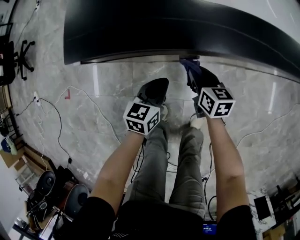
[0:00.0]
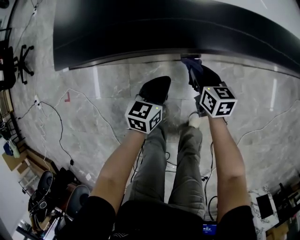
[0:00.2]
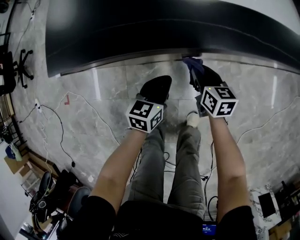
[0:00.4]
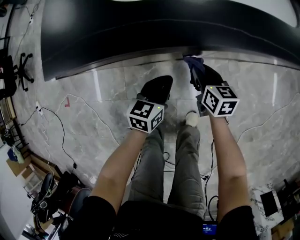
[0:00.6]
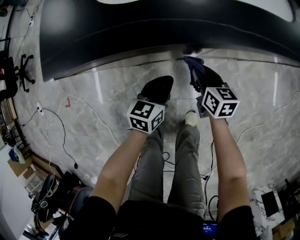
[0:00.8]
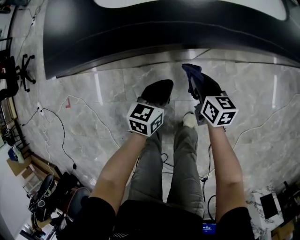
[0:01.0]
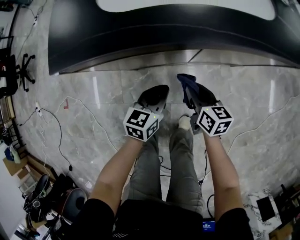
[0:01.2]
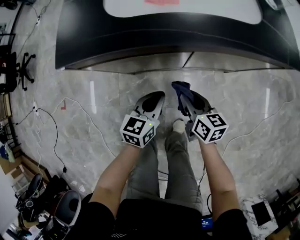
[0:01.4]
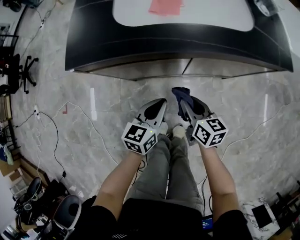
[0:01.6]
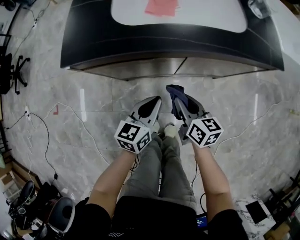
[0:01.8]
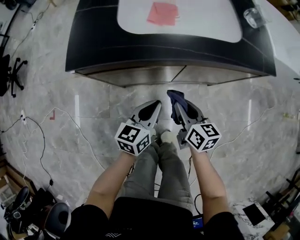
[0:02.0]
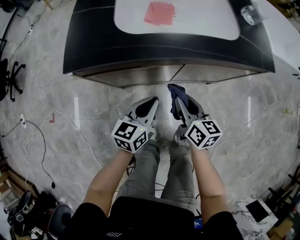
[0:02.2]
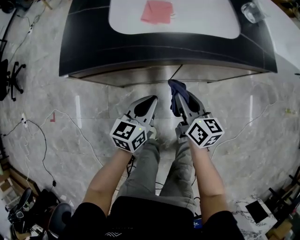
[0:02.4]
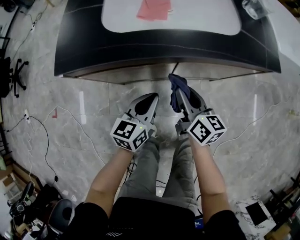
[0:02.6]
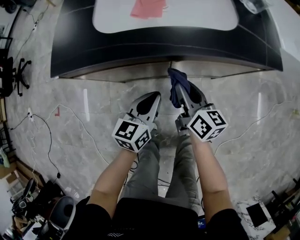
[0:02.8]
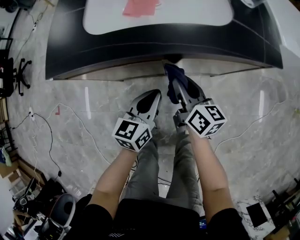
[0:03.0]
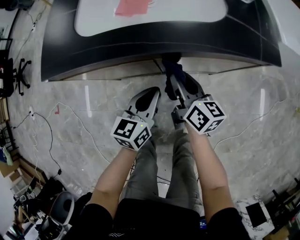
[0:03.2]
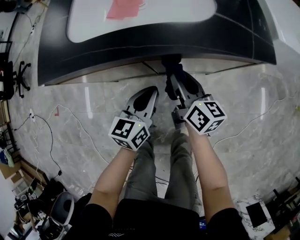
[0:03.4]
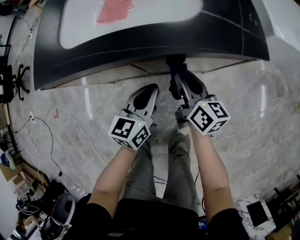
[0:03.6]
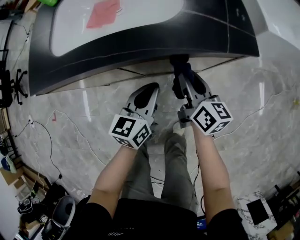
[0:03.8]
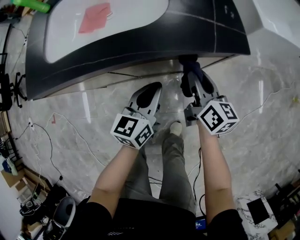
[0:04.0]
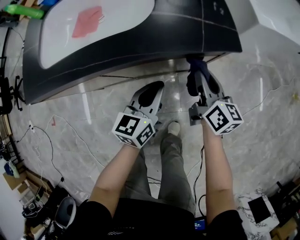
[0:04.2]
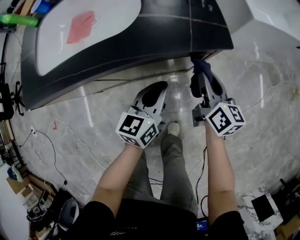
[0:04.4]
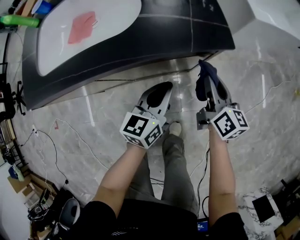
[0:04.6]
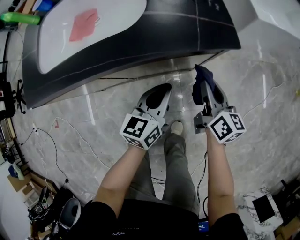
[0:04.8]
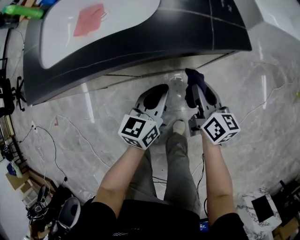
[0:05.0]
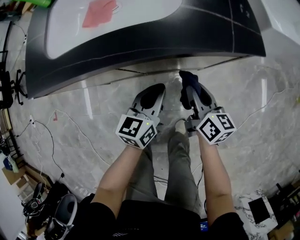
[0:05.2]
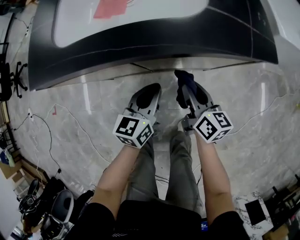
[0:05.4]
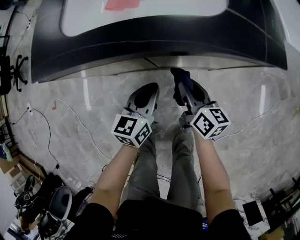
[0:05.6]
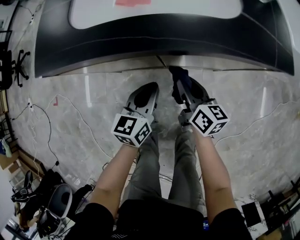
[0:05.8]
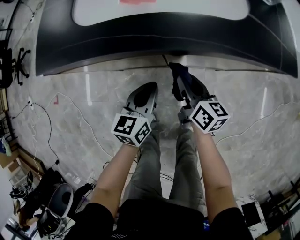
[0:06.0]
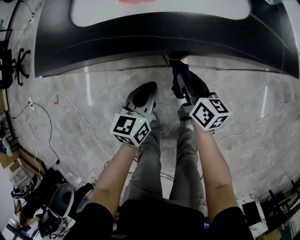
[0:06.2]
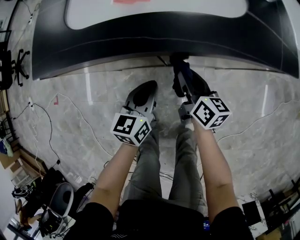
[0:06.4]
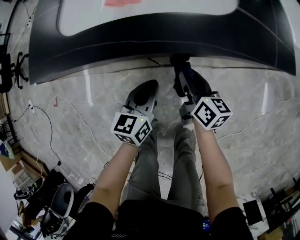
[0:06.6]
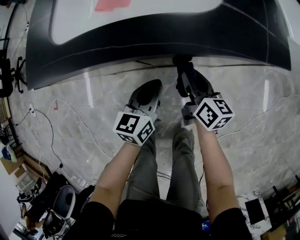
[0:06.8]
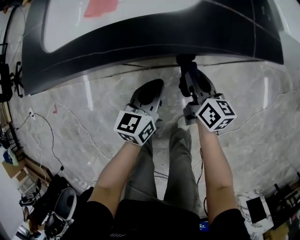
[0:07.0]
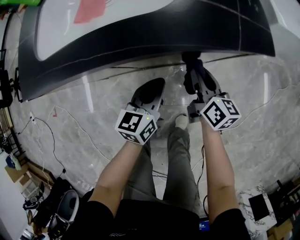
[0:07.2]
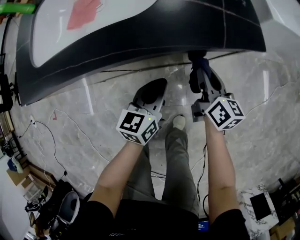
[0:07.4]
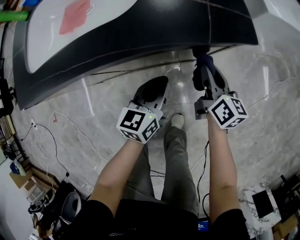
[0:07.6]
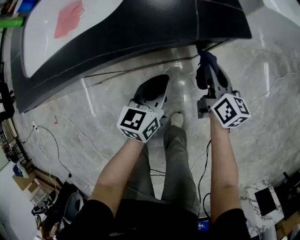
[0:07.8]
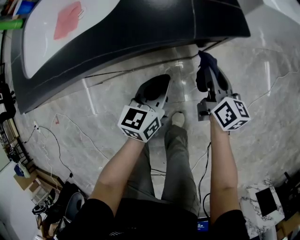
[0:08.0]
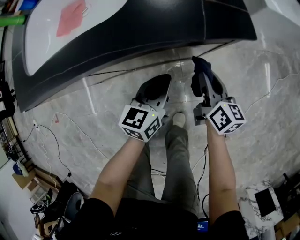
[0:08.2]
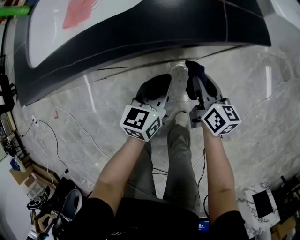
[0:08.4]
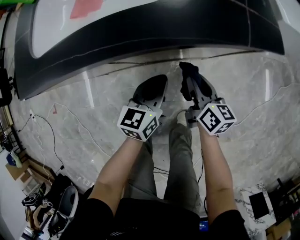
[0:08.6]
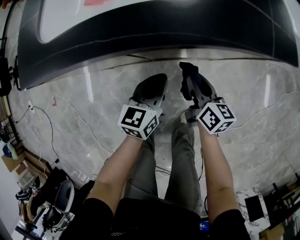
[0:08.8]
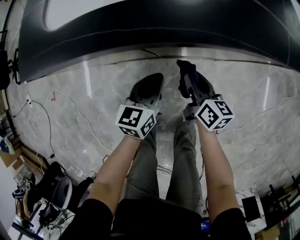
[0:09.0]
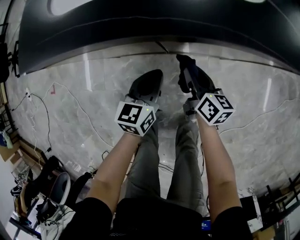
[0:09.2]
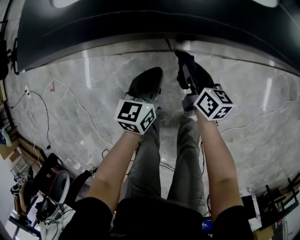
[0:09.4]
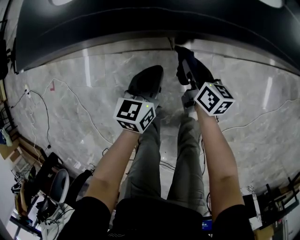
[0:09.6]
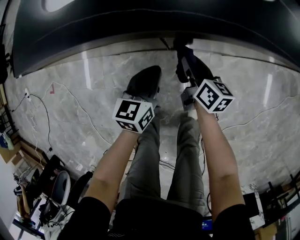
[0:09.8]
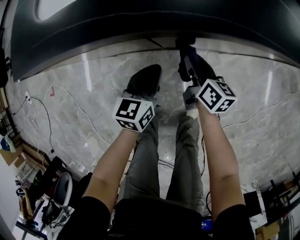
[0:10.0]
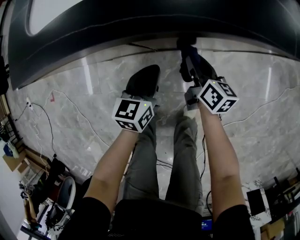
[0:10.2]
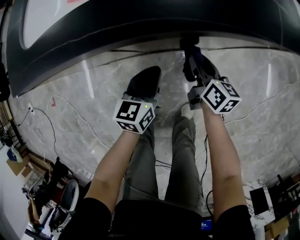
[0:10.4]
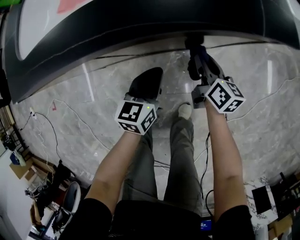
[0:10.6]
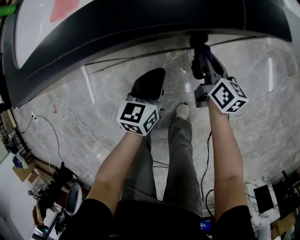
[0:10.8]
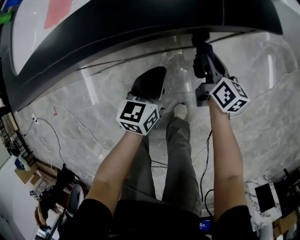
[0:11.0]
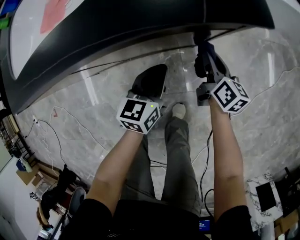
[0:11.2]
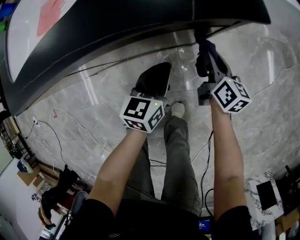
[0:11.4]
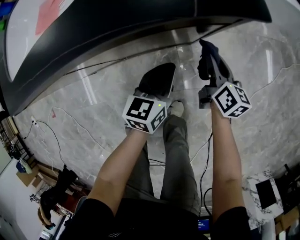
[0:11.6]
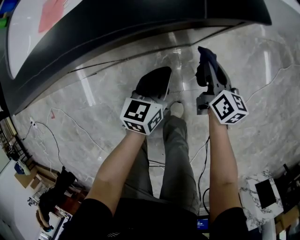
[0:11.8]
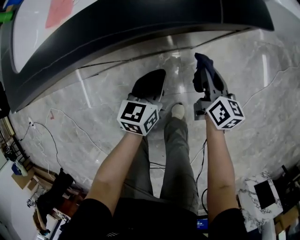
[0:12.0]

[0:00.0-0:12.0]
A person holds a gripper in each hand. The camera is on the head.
0:00.0 to 0:01.6: The right gripper is displaced to the right, upward and backward by some 20 cm, while the left gripper goes about 20 cm to the right and upward.
0:01.6 to 0:03.0: The right gripper shifts about 10 cm forward and to the right; the left gripper heads to the right, covering approximately 5 cm.
0:03.0 to 0:04.4: Both grippers travel together to the right, approximately 25 cm.
0:04.4 to 0:06.0: The grippers both shift to the left by approximately 25 cm. The right gripper turns by some 20 degrees.
0:06.0 to 0:07.6: The two grippers go approximately 25 cm to the right. The right gripper turns by about 20 degrees.
0:07.6 to 0:09.0: The two grippers go approximately 20 cm to the left.
0:09.0 to 0:10.4: The two grippers go some 5 cm to the right.
0:10.4 to 0:12.0: Both grippers travel together to the right, approximately 15 cm.

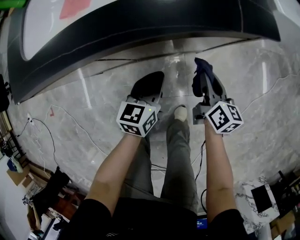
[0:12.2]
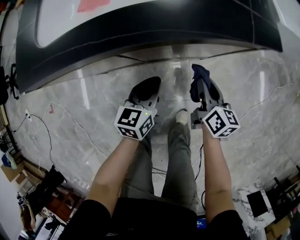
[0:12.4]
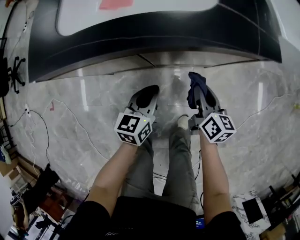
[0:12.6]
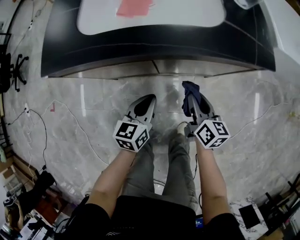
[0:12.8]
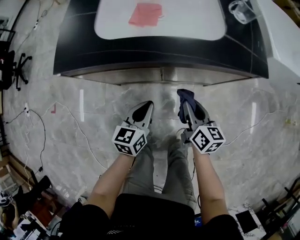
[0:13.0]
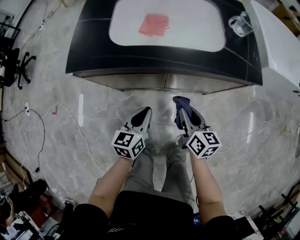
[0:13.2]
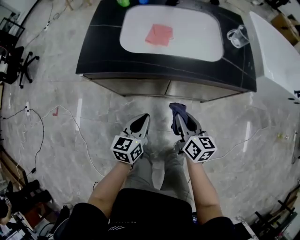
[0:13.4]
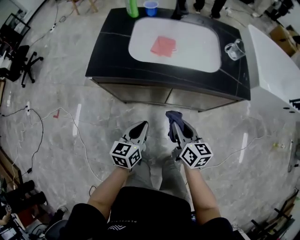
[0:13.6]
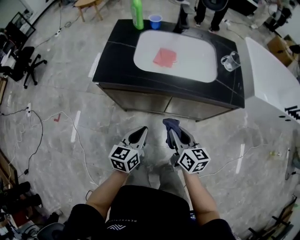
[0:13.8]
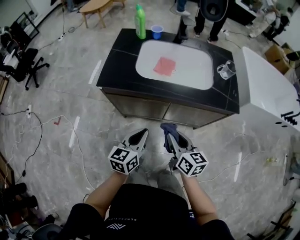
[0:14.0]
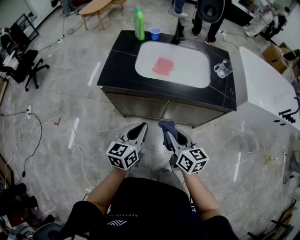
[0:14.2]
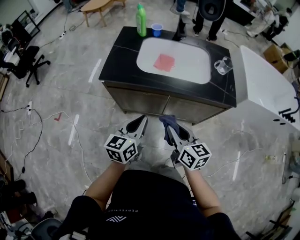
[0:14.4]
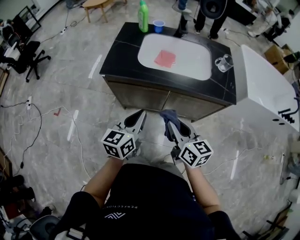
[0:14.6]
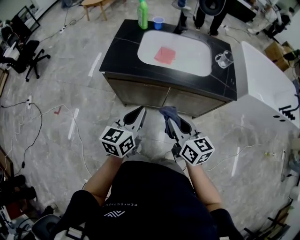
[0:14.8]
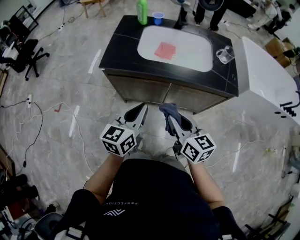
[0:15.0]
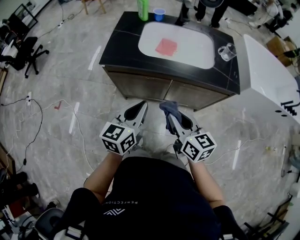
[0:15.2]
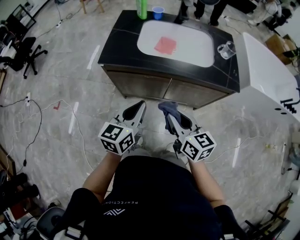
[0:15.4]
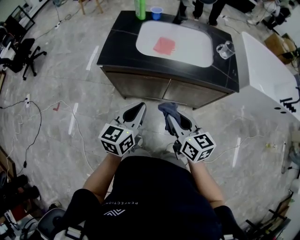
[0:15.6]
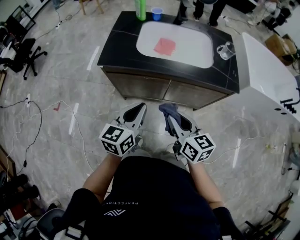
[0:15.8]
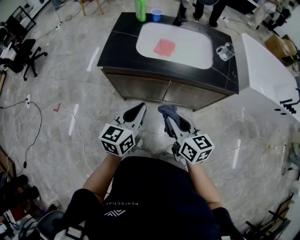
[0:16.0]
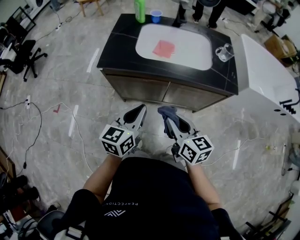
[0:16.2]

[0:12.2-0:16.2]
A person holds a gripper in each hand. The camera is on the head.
0:12.2 to 0:13.6: The left gripper travels to the left, upward and backward by about 30 cm; the right gripper travels to the left and upward by about 35 cm, and turns by about 30 degrees.
0:13.6 to 0:14.8: The left gripper goes roughly 15 cm upward, while the right gripper shifts approximately 15 cm upward and backward.
0:14.8 to 0:16.2: The grippers make only small movements.

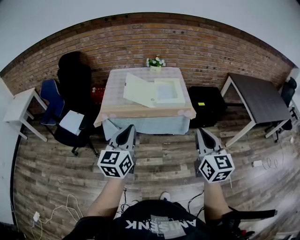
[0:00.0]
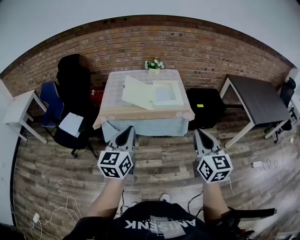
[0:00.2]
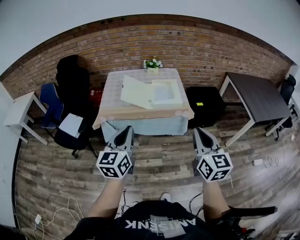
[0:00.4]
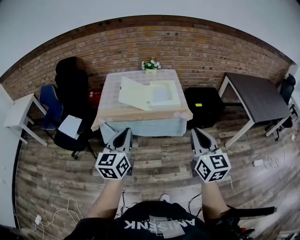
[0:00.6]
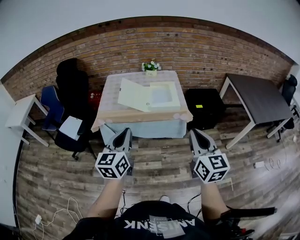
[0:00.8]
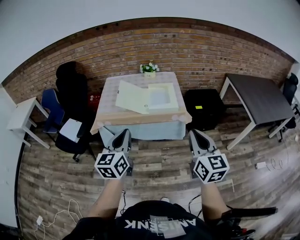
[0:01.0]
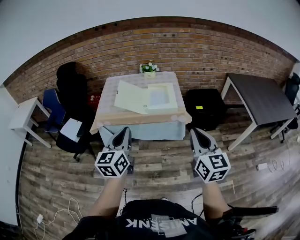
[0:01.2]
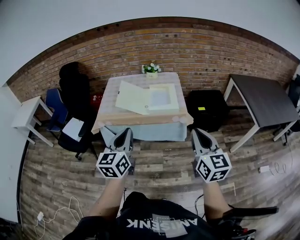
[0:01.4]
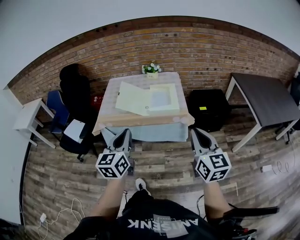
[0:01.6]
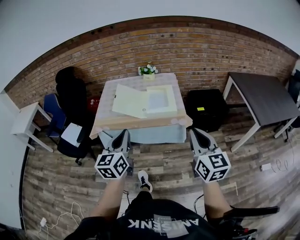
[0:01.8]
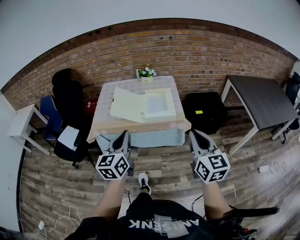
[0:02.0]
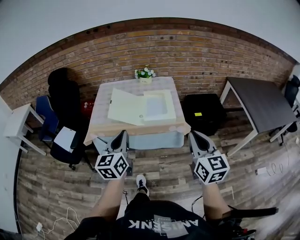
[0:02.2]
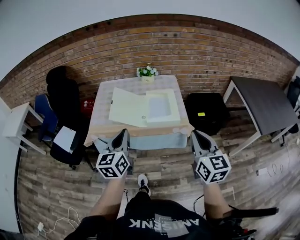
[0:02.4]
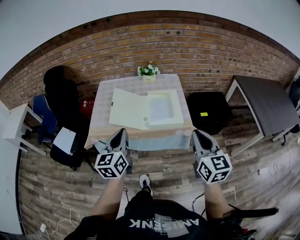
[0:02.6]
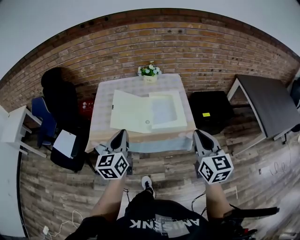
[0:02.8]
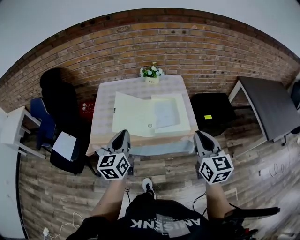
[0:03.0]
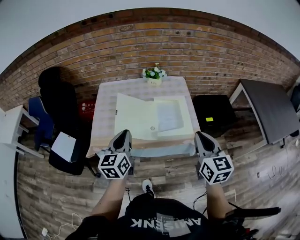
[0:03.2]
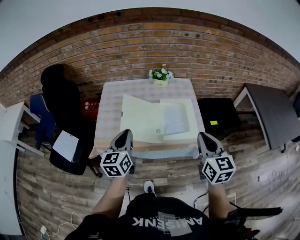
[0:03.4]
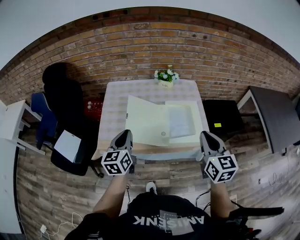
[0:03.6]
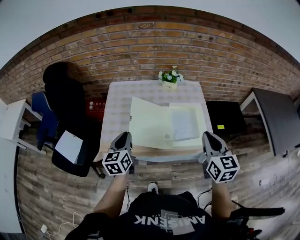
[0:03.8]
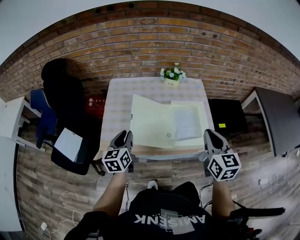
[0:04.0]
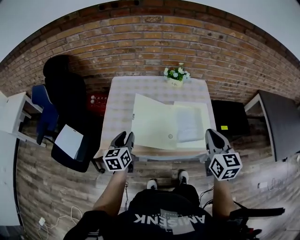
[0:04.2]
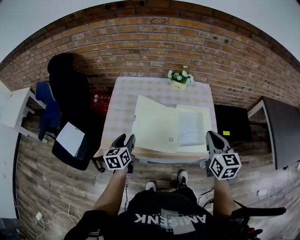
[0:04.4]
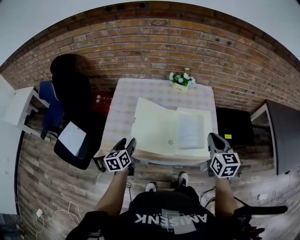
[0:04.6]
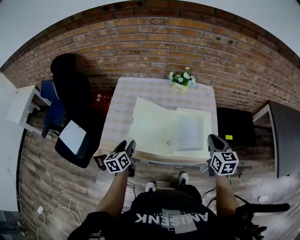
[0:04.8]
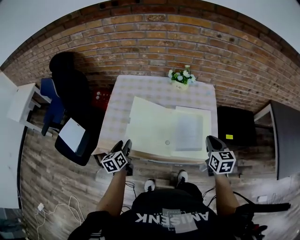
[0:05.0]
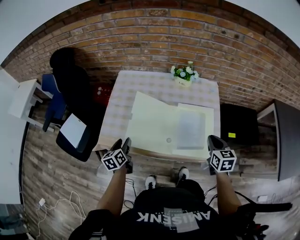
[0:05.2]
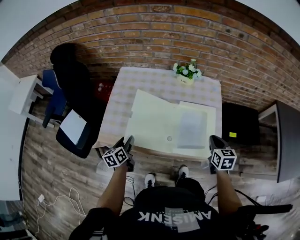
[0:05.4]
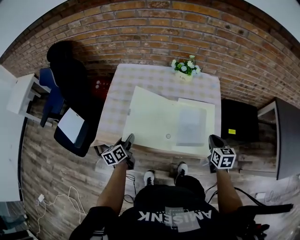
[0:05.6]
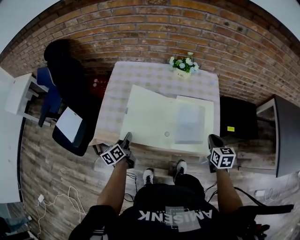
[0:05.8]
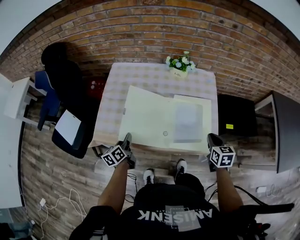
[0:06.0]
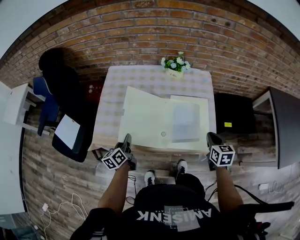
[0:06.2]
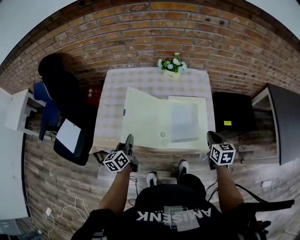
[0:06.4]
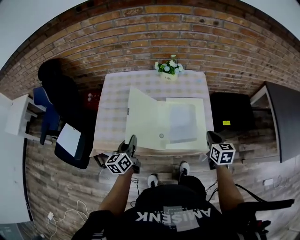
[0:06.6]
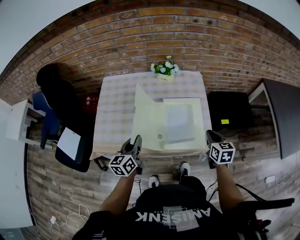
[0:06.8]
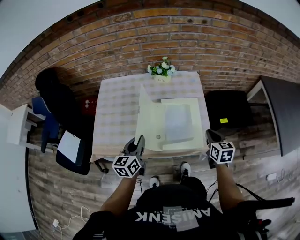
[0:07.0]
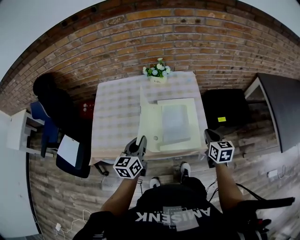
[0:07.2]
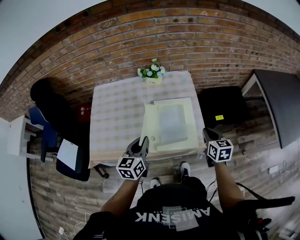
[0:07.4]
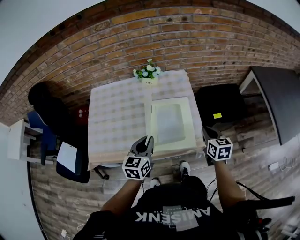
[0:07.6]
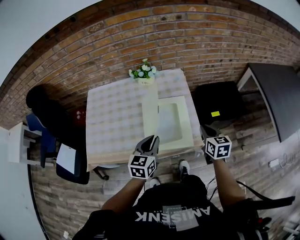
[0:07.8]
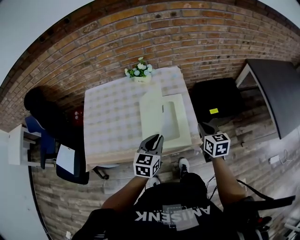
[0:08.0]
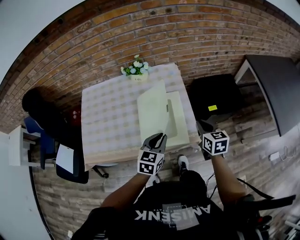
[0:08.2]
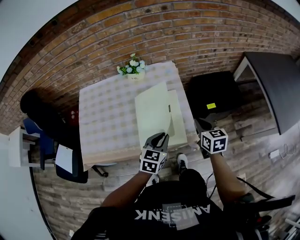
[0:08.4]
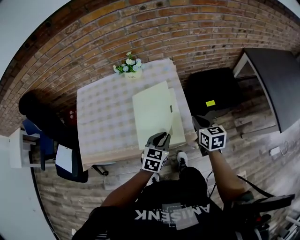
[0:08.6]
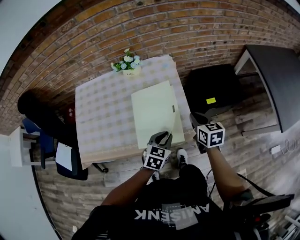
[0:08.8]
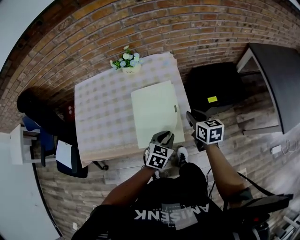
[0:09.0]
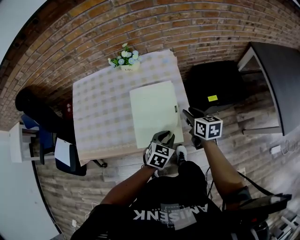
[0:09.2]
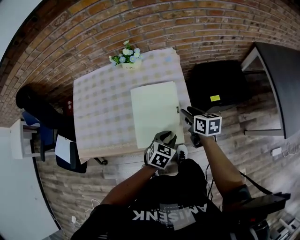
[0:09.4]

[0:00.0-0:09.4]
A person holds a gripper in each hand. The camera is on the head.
0:00.0 to 0:01.6: The right gripper moves to the right and forward, approximately 10 cm; the left gripper is displaced to the right by roughly 10 cm.
0:01.6 to 0:03.2: The grippers both shift forward by some 30 cm.
0:03.2 to 0:04.8: The left gripper moves downward, forward and to the left, approximately 25 cm, swivels approximately 30 degrees, and opens; the right gripper shifts roughly 25 cm forward and downward.
0:04.8 to 0:06.2: The left gripper shifts by about 5 cm, and closes. Meanwhile the right gripper travels downward and to the right by some 10 cm.
0:06.2 to 0:07.8: The left gripper heads to the right, covering roughly 30 cm, and changes its angle by about 50 degrees, while the right gripper shifts roughly 10 cm to the right.
0:07.8 to 0:09.4: The right gripper moves forward and downward, about 10 cm, rotates approximately 20 degrees, and opens its fingers. Meanwhile the left gripper moves to the right and downward, approximately 20 cm, and rotates roughly 30 degrees.
